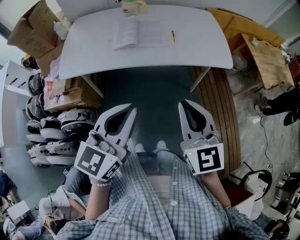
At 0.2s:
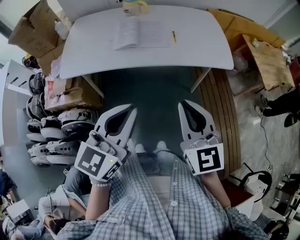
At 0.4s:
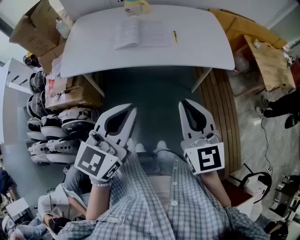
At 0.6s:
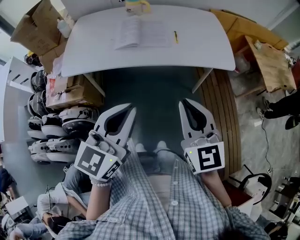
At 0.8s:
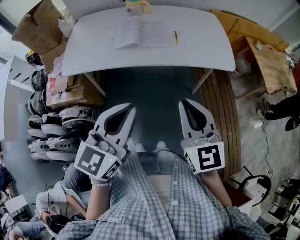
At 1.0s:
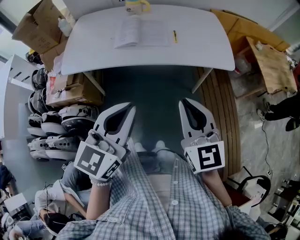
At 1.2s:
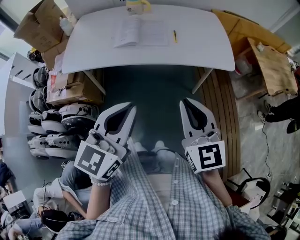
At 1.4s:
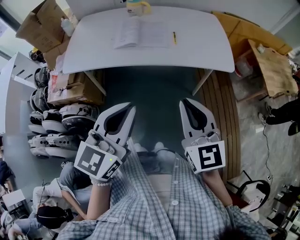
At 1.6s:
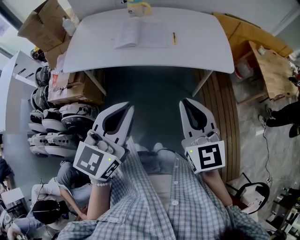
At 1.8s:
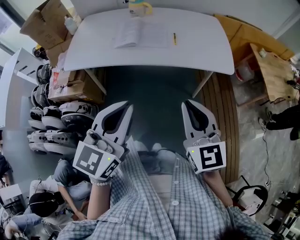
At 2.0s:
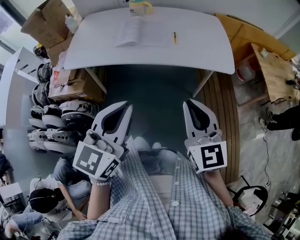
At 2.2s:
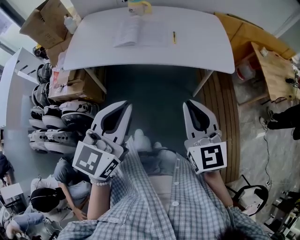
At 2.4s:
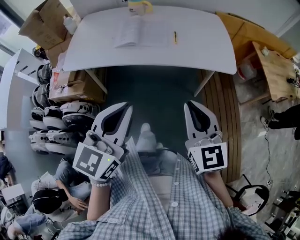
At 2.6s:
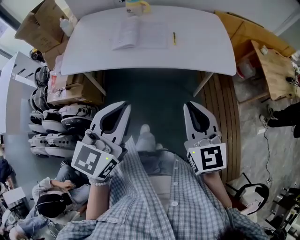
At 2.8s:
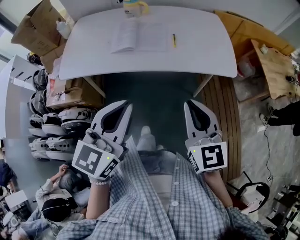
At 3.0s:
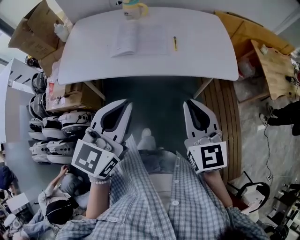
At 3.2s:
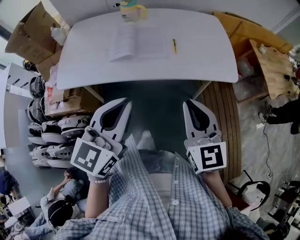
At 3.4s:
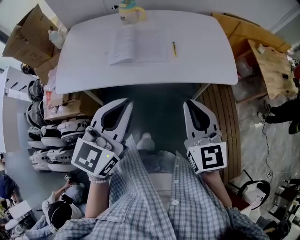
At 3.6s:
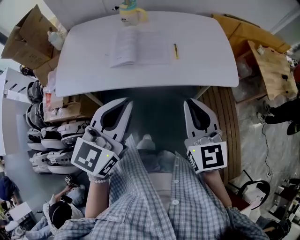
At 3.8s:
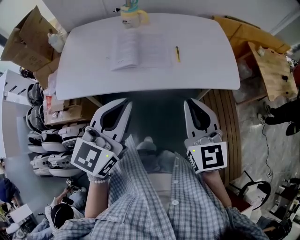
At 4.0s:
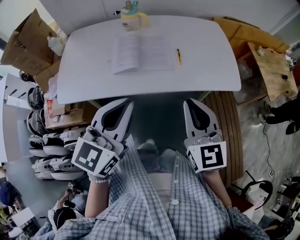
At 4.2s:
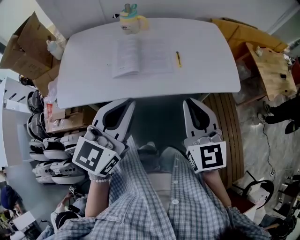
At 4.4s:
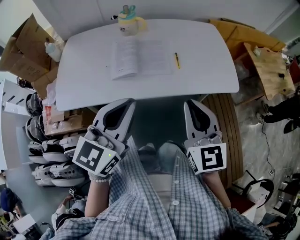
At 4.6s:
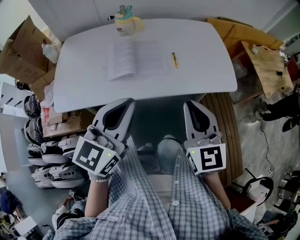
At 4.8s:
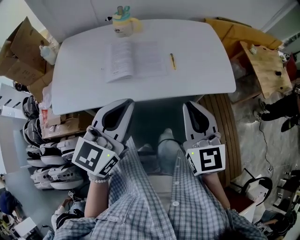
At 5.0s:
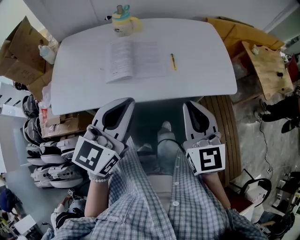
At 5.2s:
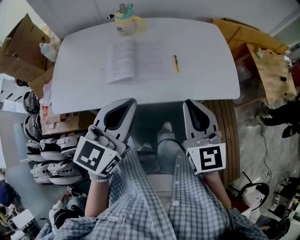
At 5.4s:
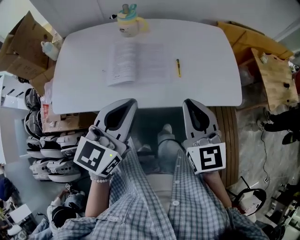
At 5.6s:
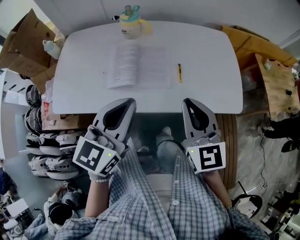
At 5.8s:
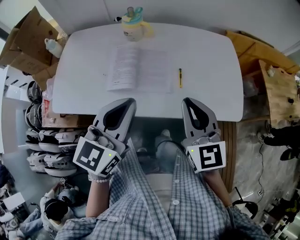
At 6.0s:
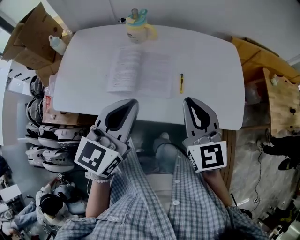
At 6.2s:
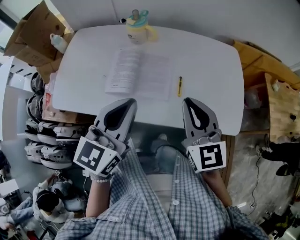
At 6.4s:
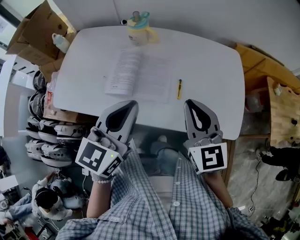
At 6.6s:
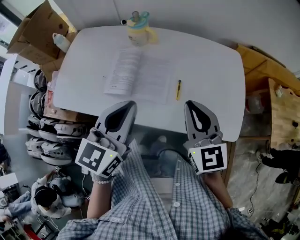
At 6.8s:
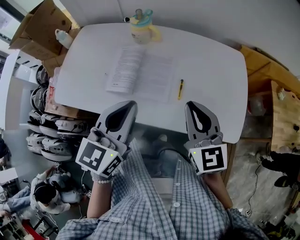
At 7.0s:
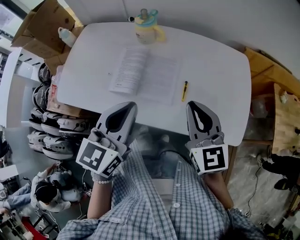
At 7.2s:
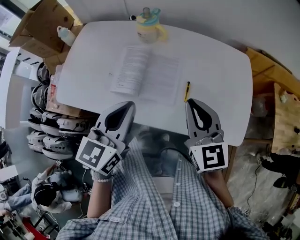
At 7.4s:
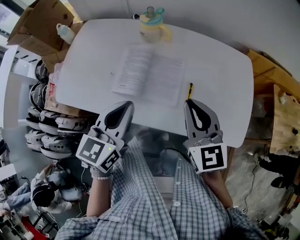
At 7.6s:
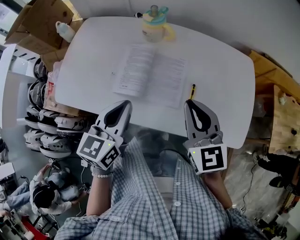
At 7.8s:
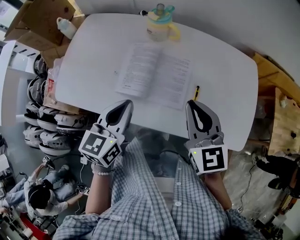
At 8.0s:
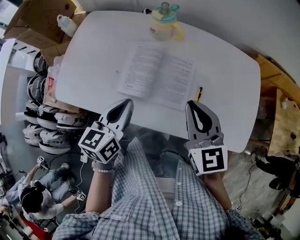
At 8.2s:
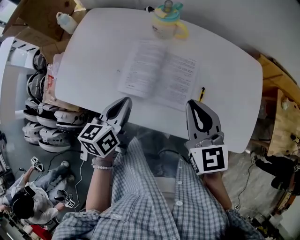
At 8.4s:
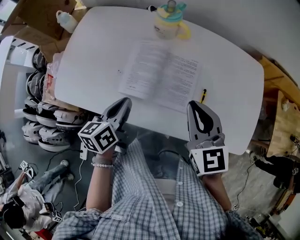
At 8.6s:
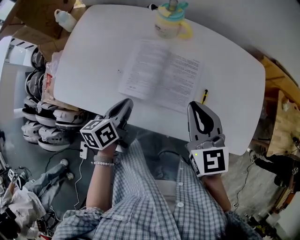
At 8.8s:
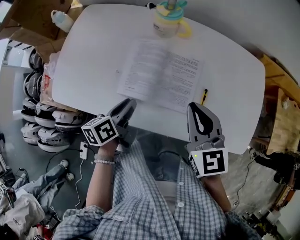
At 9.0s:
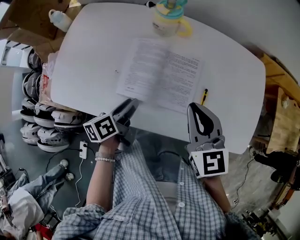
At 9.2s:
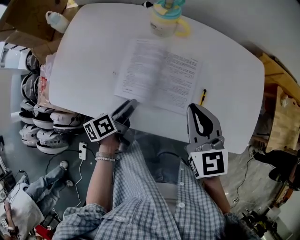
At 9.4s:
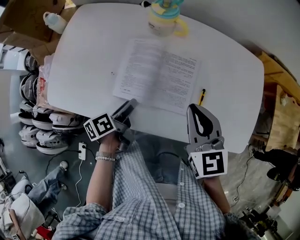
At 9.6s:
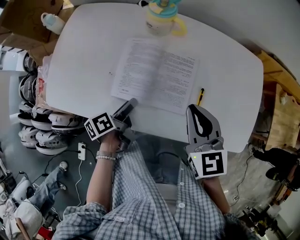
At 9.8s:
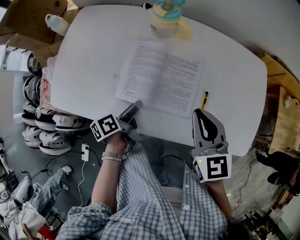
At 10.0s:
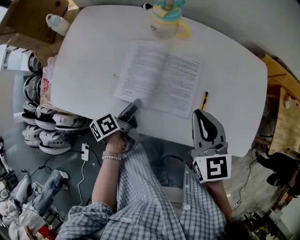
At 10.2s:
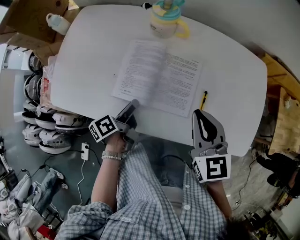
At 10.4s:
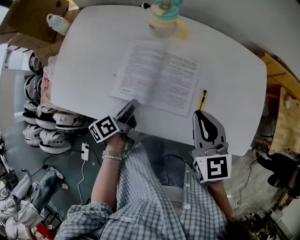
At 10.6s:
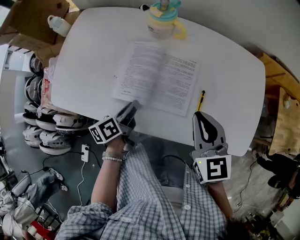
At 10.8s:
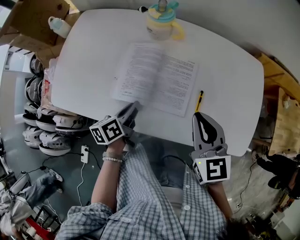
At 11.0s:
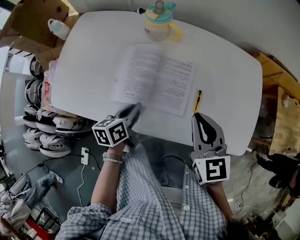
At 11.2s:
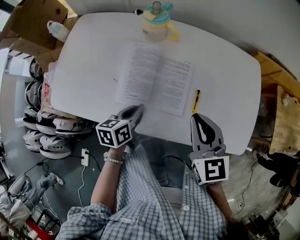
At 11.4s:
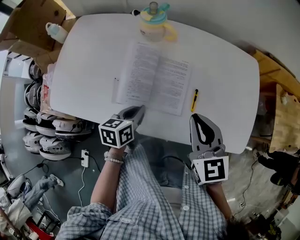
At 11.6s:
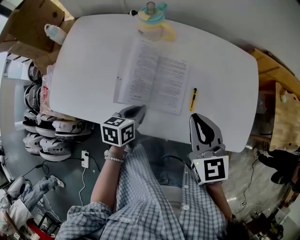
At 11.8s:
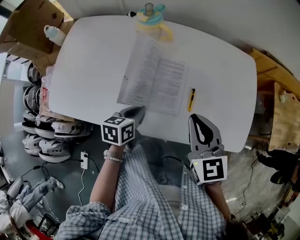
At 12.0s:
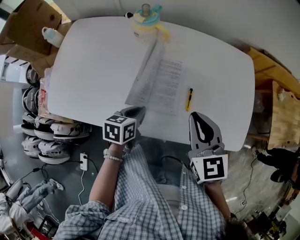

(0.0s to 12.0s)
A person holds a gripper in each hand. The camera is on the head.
0.0s - 1.6s: The left gripper shifts by some 5 cm; the right gripper heads to the right, covering roughly 5 cm.
1.6s - 3.0s: Both grippers move forward, some 10 cm.
3.0s - 4.4s: The two grippers go roughly 10 cm forward and to the left.
4.4s - 6.0s: Both grippers travel together forward, roughly 15 cm.
6.0s - 7.6s: The right gripper moves forward, roughly 5 cm; the left gripper moves downward, to the left and forward, some 10 cm.
7.6s - 9.0s: The right gripper changes place by about 5 cm. The left gripper moves downward, roughly 15 cm, rolls counterclockwise, seen from behind, by about 50 degrees, and opens.
9.0s - 10.4s: The left gripper closes up.
10.4s - 12.0s: The left gripper goes some 10 cm to the right, and rolls clockwise, seen from behind, by roughly 40 degrees.

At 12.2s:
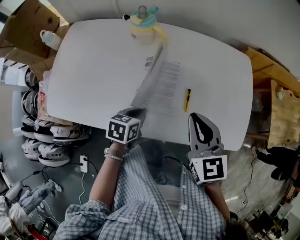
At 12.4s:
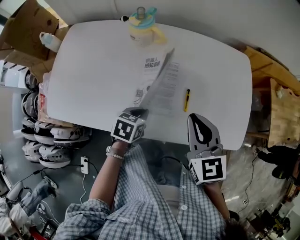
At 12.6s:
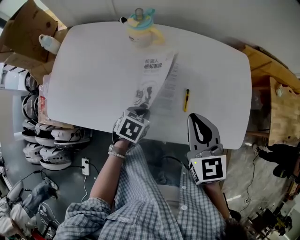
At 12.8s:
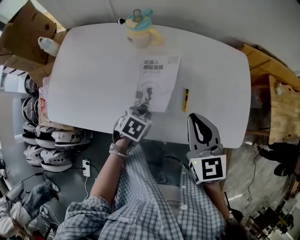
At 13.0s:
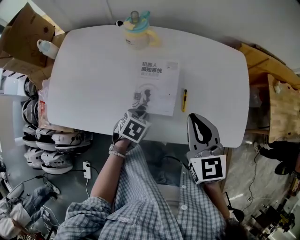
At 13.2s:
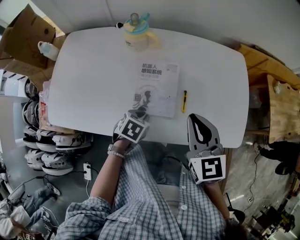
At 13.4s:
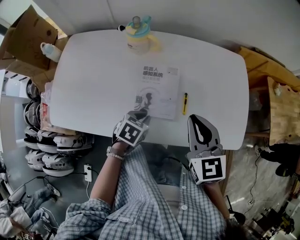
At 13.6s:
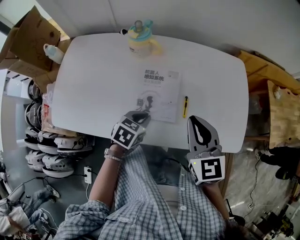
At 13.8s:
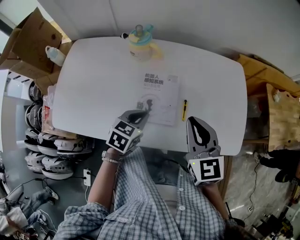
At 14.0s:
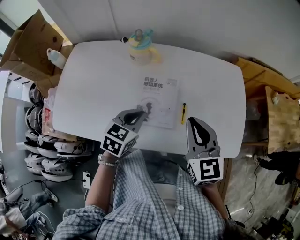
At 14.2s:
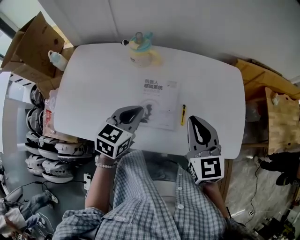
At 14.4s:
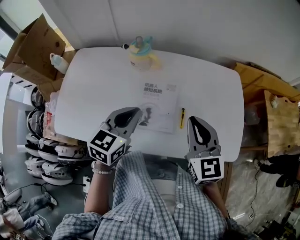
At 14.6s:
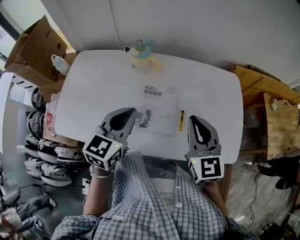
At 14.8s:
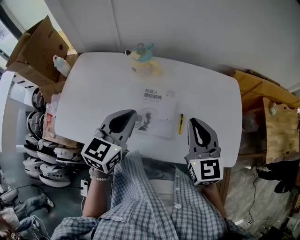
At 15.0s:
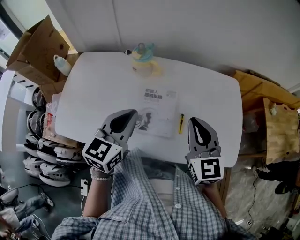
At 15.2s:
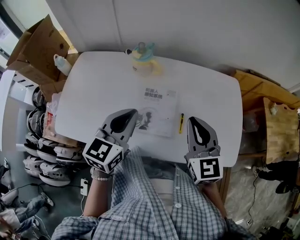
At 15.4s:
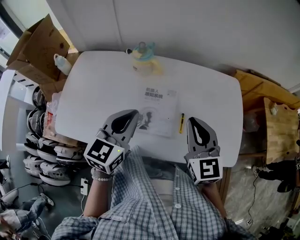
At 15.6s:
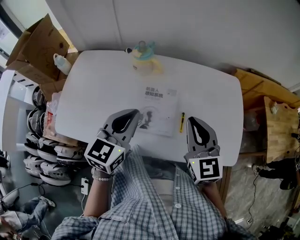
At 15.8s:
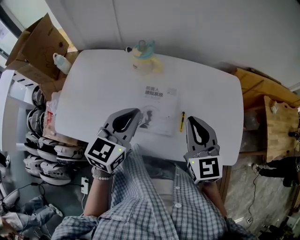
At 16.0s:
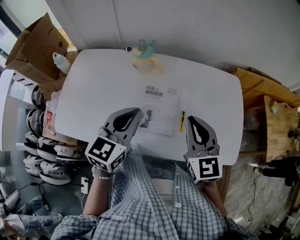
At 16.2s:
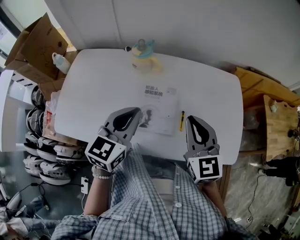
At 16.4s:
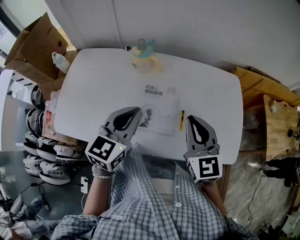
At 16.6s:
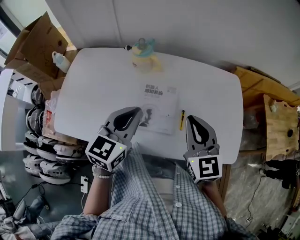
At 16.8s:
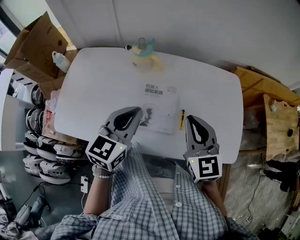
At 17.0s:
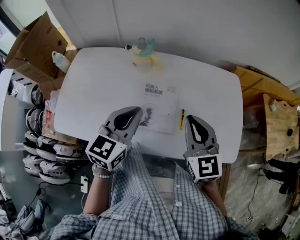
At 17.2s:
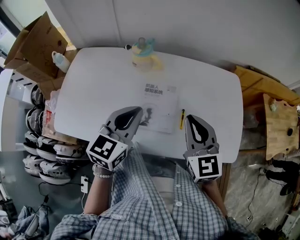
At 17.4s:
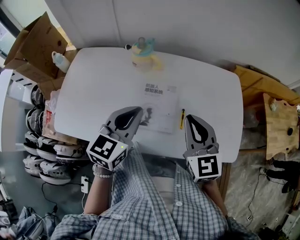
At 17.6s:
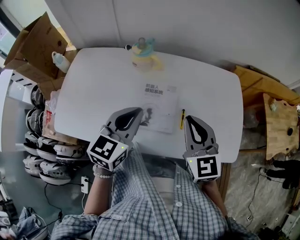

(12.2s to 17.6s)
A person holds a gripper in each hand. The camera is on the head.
12.2s - 13.6s: The left gripper swivels some 20 degrees.
13.6s - 15.0s: The right gripper changes place by roughly 5 cm, while the left gripper goes approximately 20 cm upward, and tilts its fingers about 30 degrees upward.
15.0s - 16.2s: The two grippers keep their place.
16.2s - 17.6s: The two grippers keep their place.

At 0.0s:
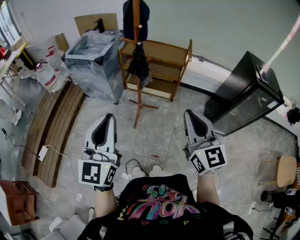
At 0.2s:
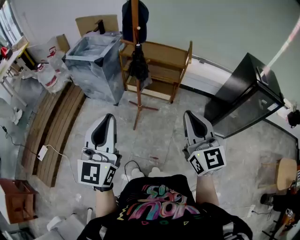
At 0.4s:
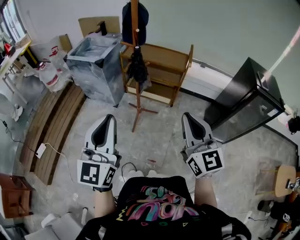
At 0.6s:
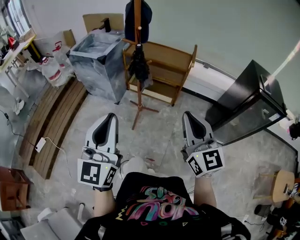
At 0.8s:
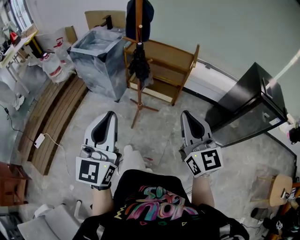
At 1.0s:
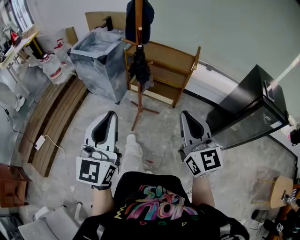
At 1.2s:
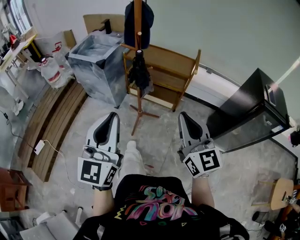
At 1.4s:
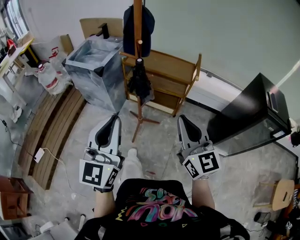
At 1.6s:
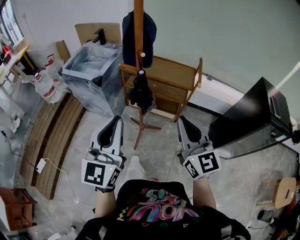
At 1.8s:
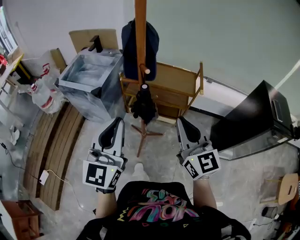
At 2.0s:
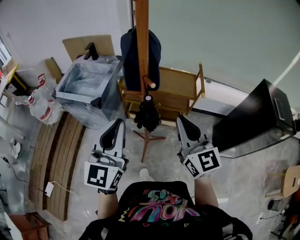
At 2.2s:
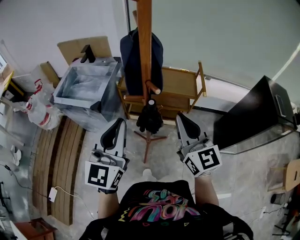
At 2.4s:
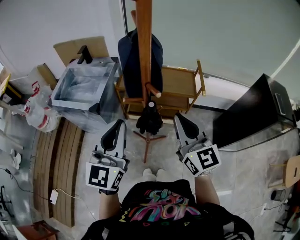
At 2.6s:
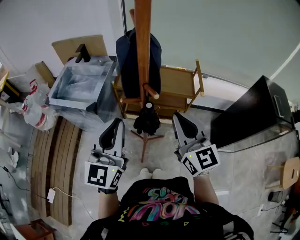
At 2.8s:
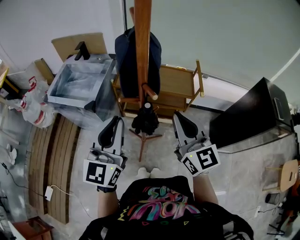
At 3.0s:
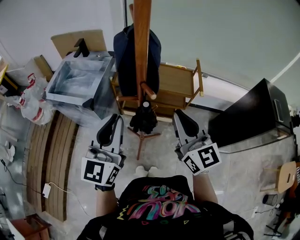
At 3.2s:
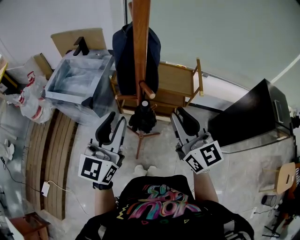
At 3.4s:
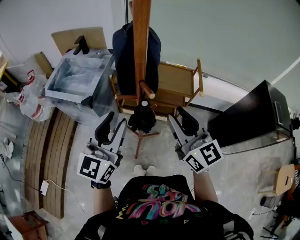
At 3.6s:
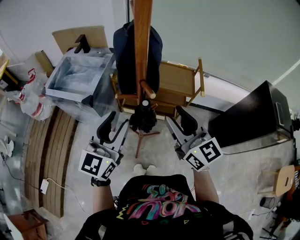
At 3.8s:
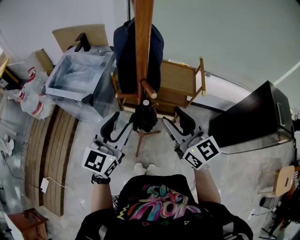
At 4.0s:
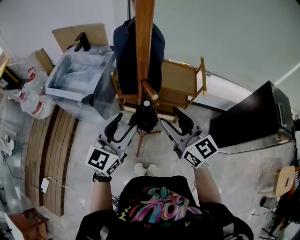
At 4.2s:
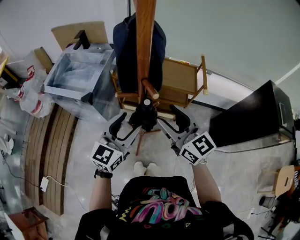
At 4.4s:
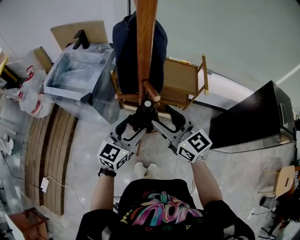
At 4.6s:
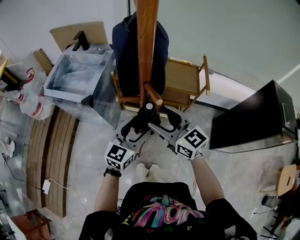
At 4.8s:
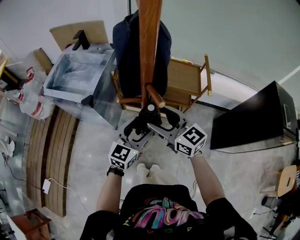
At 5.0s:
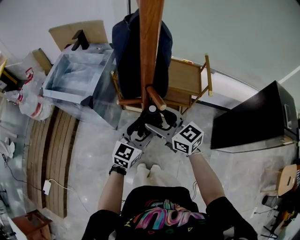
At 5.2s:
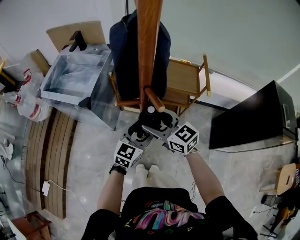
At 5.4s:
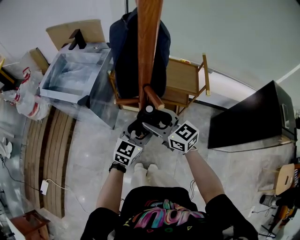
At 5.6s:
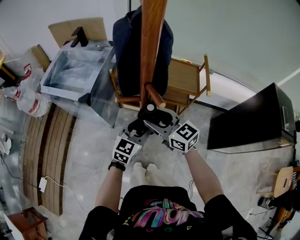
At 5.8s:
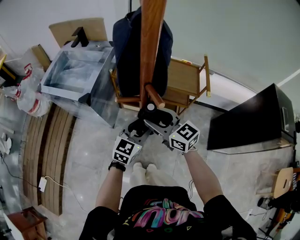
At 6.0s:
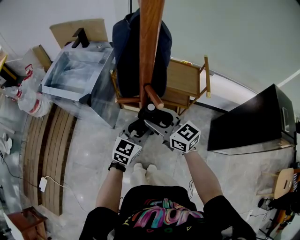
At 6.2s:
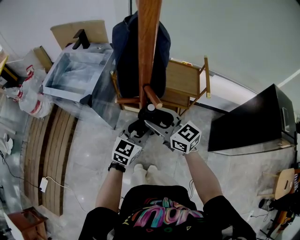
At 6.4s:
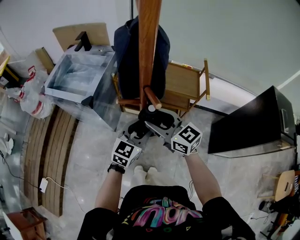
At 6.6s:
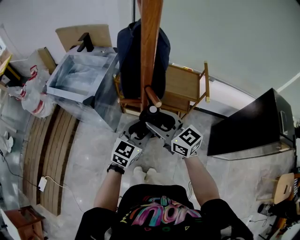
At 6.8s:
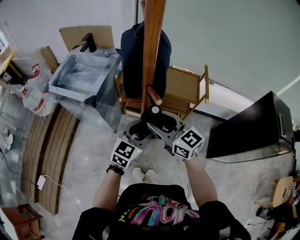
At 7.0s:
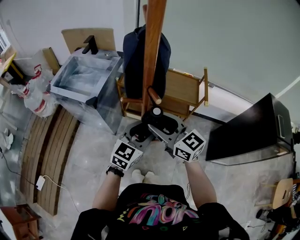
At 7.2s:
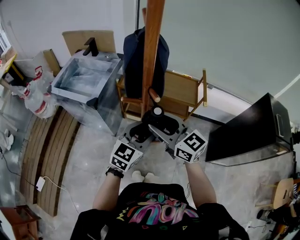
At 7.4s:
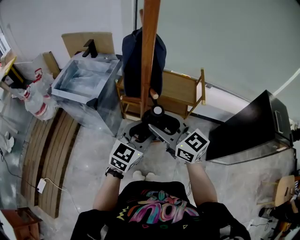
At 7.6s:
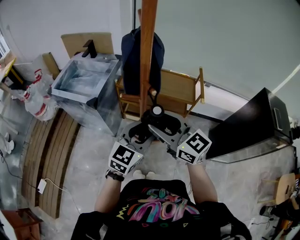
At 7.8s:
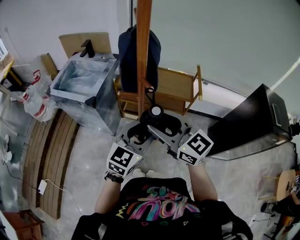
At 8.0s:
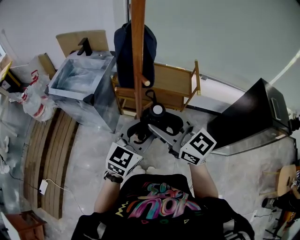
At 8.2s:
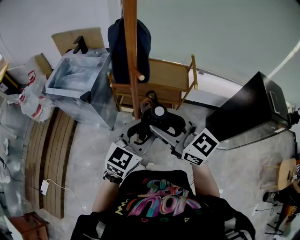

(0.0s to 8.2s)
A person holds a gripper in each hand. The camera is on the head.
0.0s - 1.6s: The grippers both shift forward by some 20 cm.
1.6s - 3.2s: Both grippers move forward, about 20 cm.
3.2s - 5.0s: The left gripper is displaced downward by some 20 cm, rotates approximately 20 degrees, and opens its fingers. The right gripper travels downward, to the left and forward by roughly 20 cm, changes its angle by approximately 30 degrees, and opens up.
5.0s - 6.6s: There are only small adjustments of the grippers.
6.6s - 8.2s: The two grippers go approximately 20 cm backward and upward.
